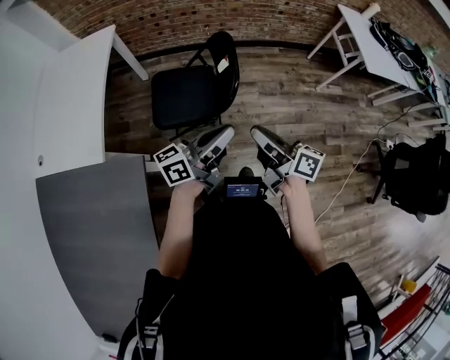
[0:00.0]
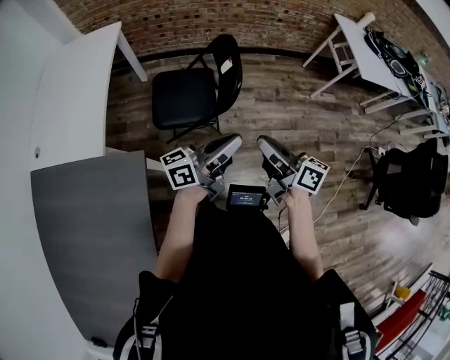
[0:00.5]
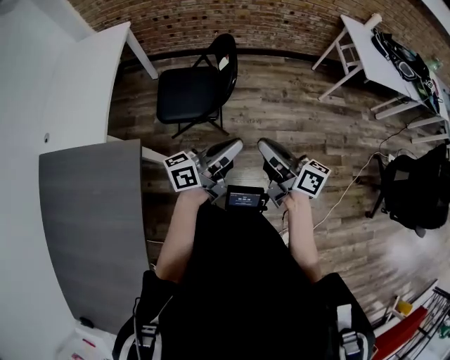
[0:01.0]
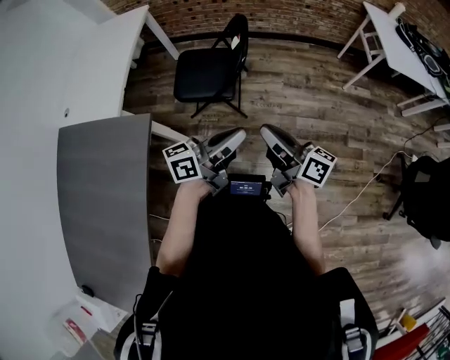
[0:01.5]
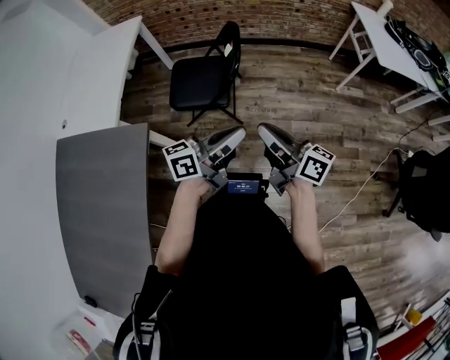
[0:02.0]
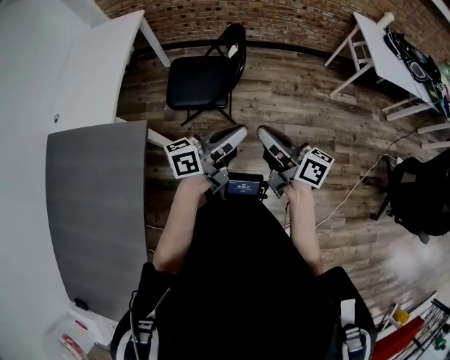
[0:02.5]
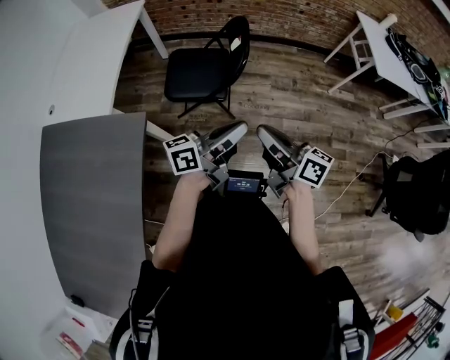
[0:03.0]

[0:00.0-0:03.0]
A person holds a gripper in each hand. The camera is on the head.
0:00.0 to 0:01.5: The two grippers go some 15 cm backward and to the right.
0:01.5 to 0:03.0: The grippers move only a little.

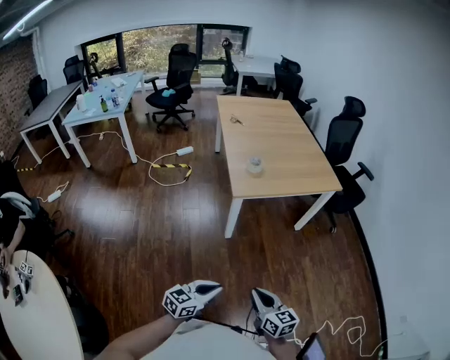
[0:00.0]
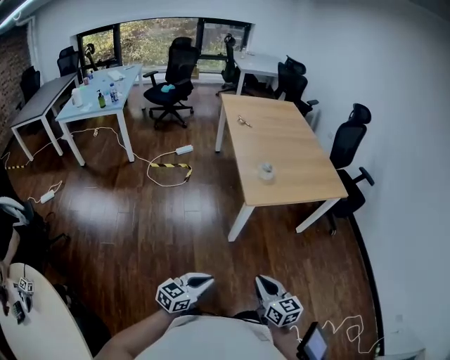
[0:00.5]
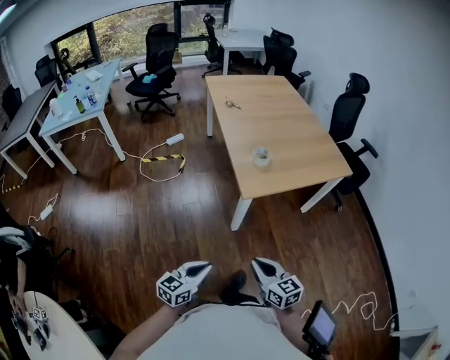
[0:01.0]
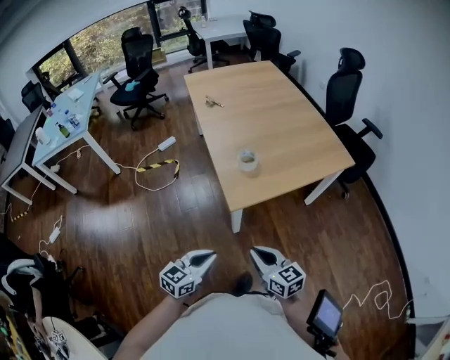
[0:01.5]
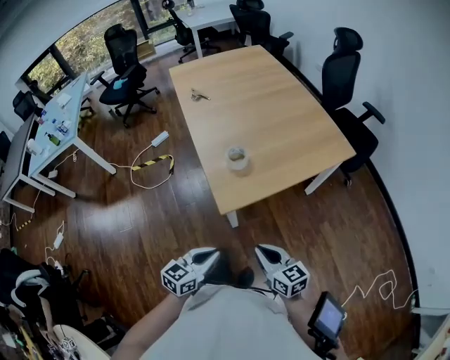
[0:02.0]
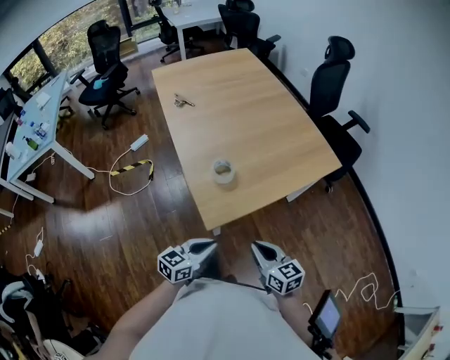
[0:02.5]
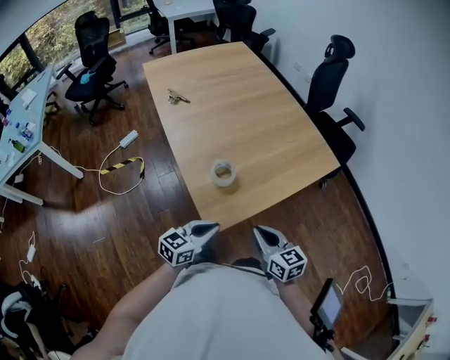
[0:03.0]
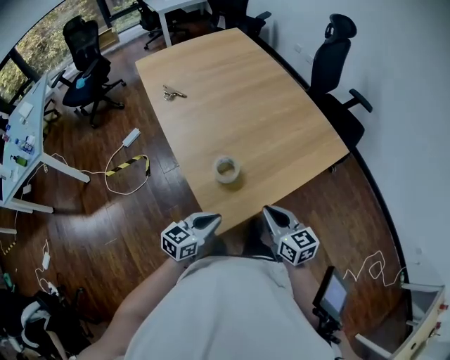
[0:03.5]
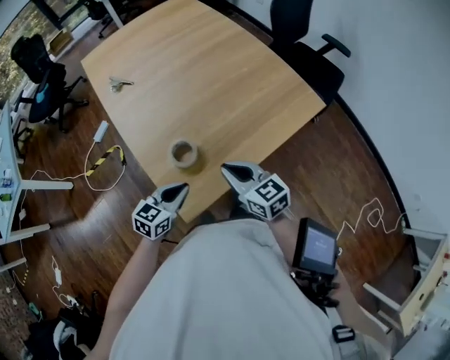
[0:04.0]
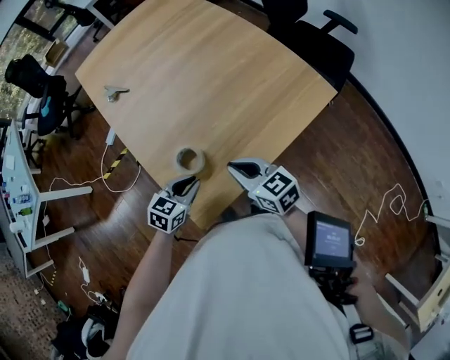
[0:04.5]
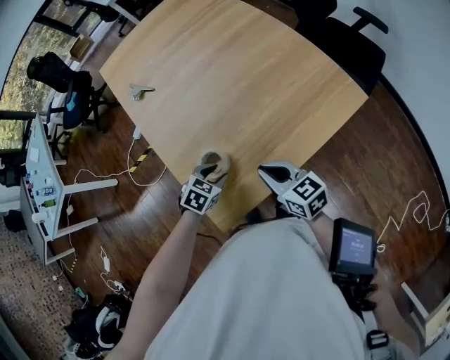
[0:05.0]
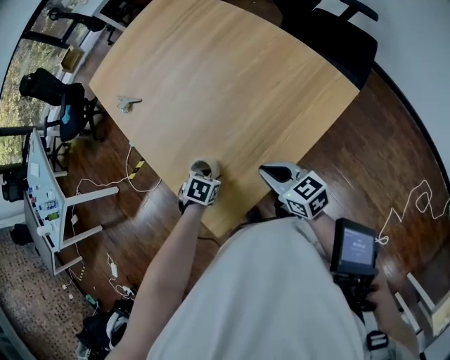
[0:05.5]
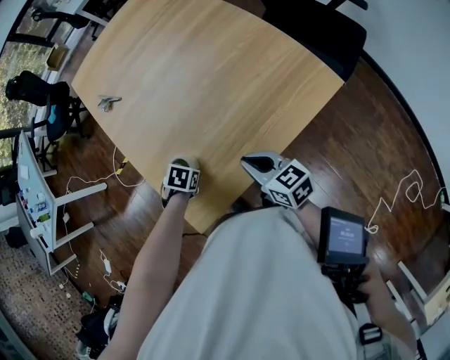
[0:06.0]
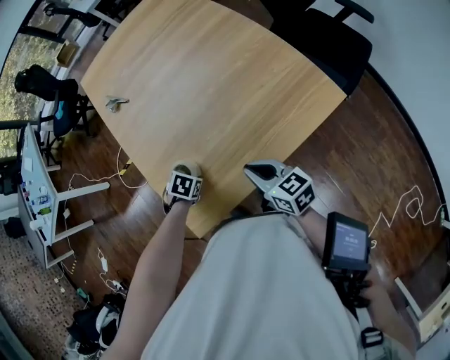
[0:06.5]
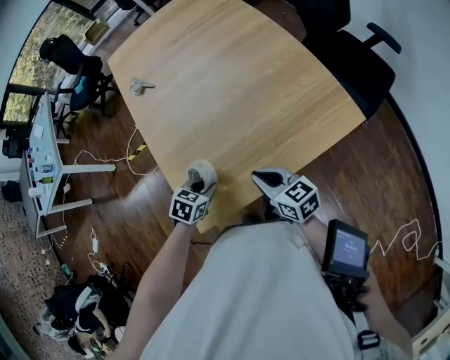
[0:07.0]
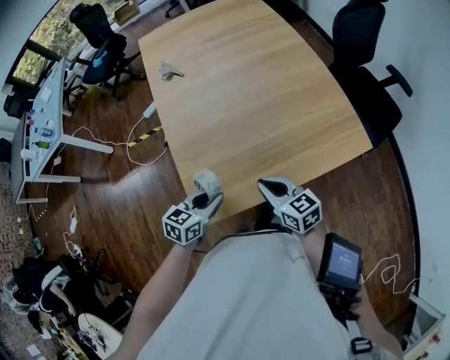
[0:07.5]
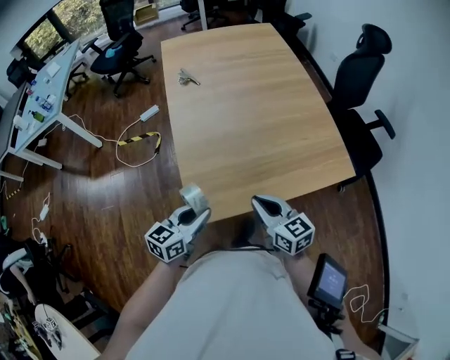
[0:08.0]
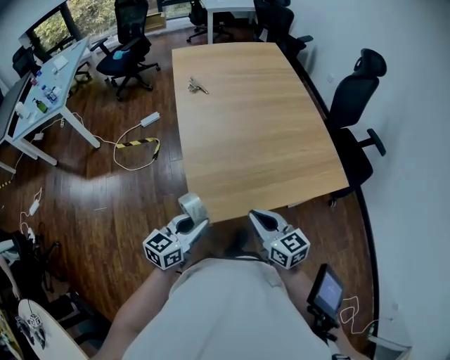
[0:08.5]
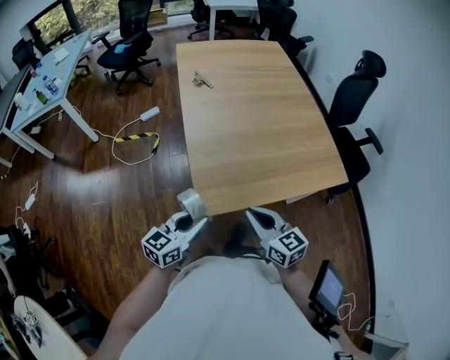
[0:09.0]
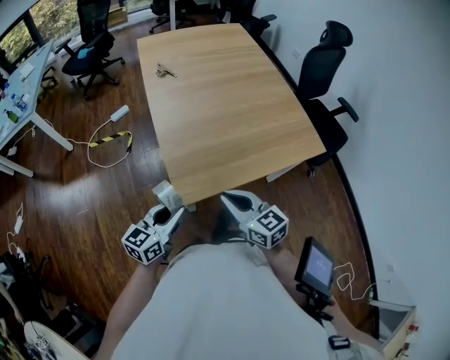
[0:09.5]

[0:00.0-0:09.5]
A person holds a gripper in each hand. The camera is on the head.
0:00.0 to 0:02.0: The two grippers go about 35 cm forward.
0:02.0 to 0:04.0: The two grippers go about 30 cm forward.
0:04.0 to 0:05.5: The right gripper changes place by some 15 cm. Meanwhile the left gripper is displaced downward by some 10 cm, points its fingers some 50 degrees further downward, and opens.
0:05.5 to 0:07.5: The left gripper goes approximately 10 cm upward, tilts its fingers approximately 40 degrees upward, and closes.
0:07.5 to 0:09.5: Both grippers travel together backward, to the left and upward, about 20 cm. The left gripper swivels about 20 degrees.

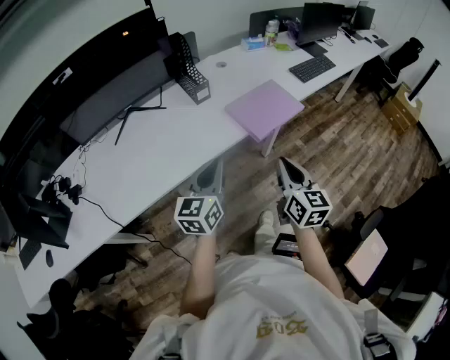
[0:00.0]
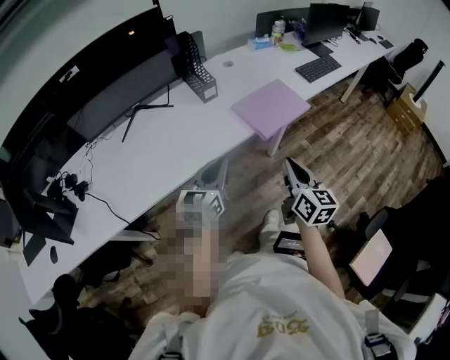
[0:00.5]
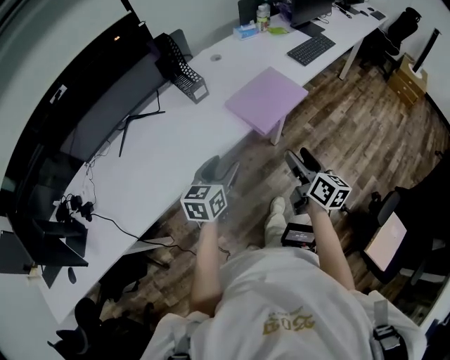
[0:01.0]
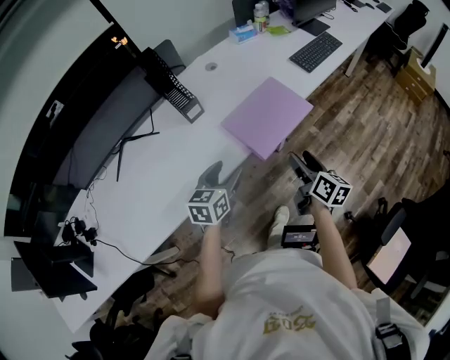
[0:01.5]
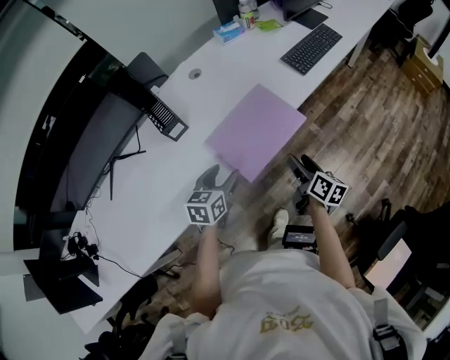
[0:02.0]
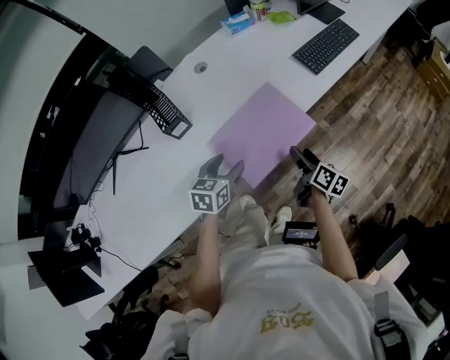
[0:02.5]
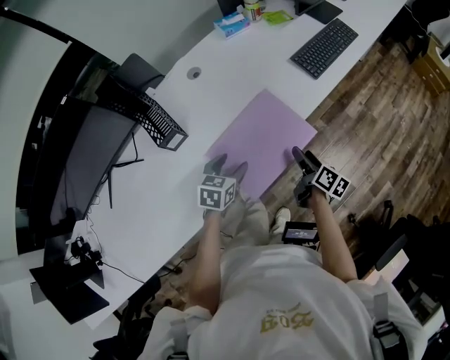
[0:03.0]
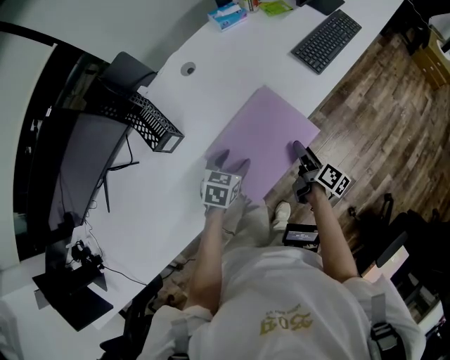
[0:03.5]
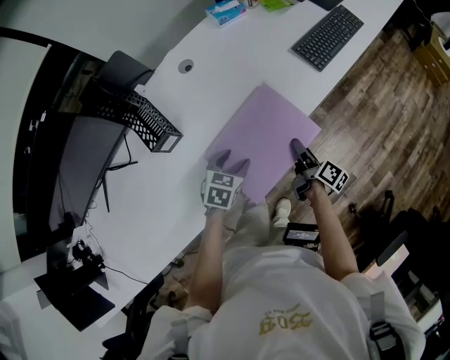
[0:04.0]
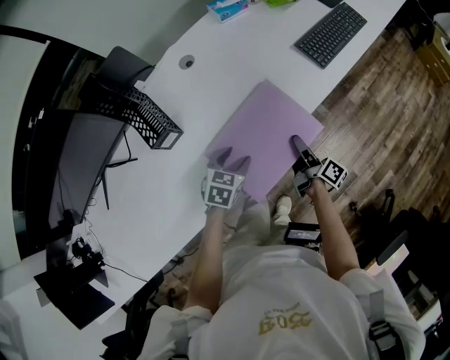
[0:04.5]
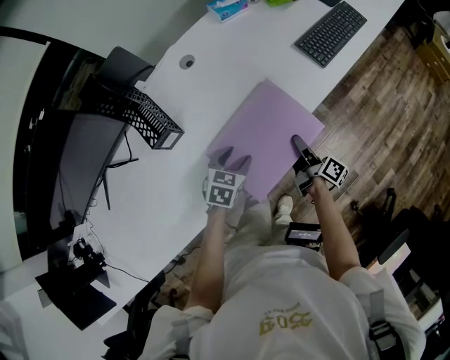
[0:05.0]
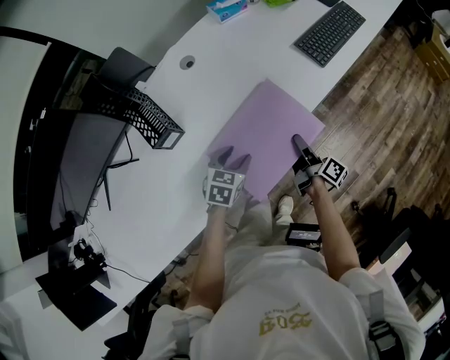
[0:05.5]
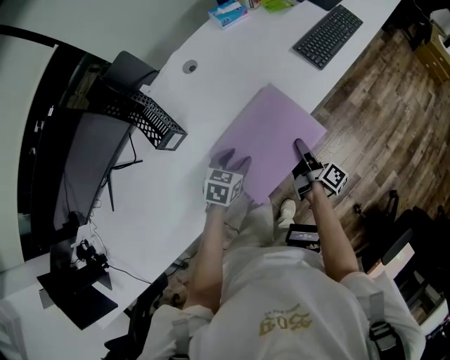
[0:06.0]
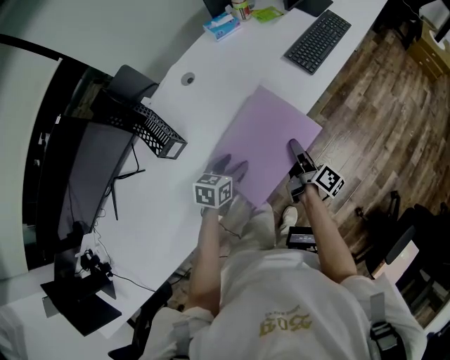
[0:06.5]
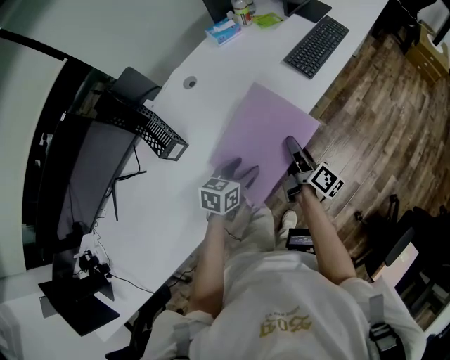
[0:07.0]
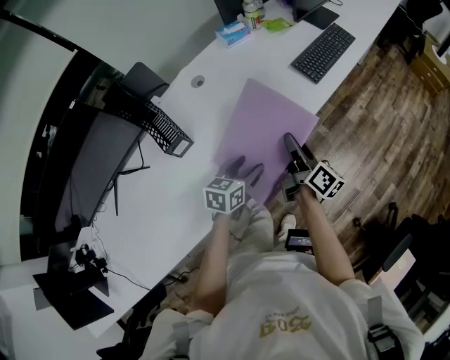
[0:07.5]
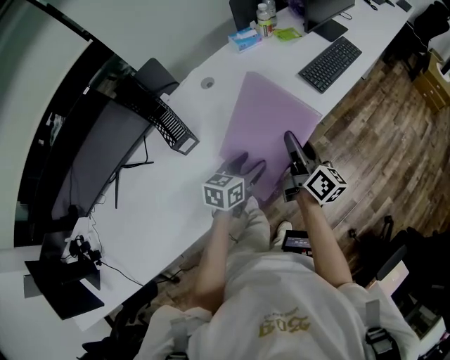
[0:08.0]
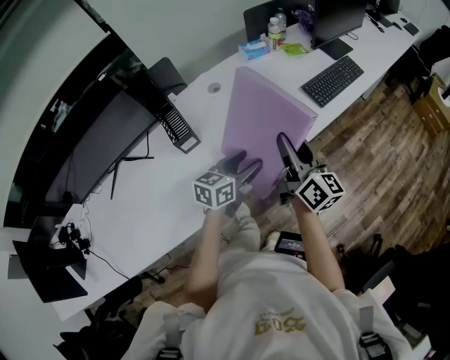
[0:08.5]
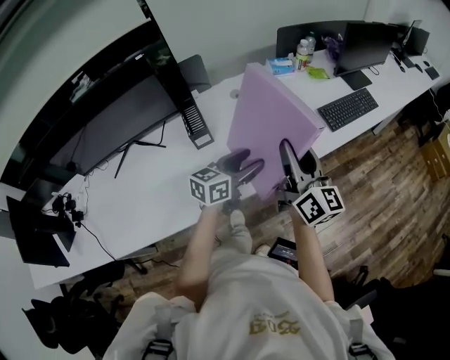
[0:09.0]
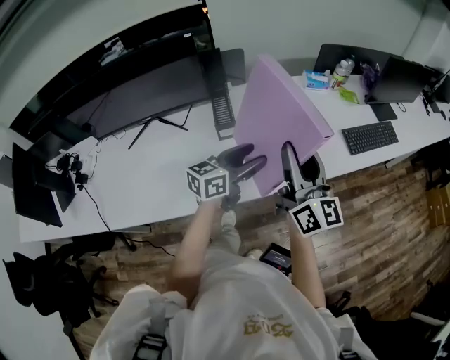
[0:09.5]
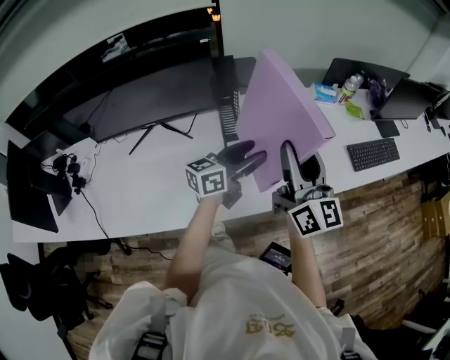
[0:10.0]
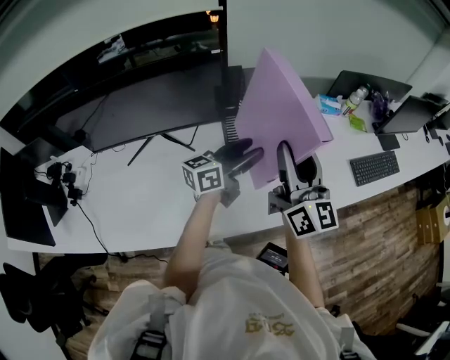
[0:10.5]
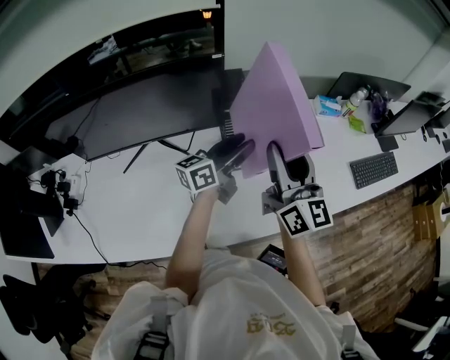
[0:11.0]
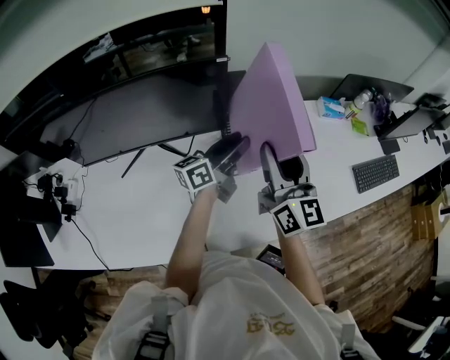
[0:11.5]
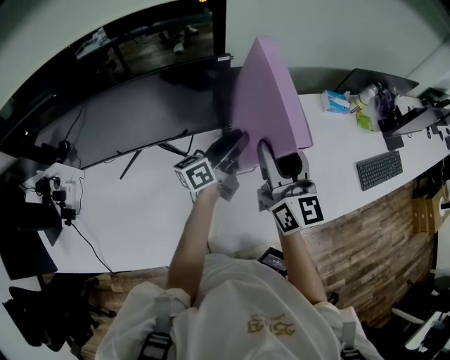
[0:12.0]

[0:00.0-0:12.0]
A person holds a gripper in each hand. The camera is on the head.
0:00.0 to 0:02.0: The right gripper travels forward, downward and to the right by roughly 35 cm, turns by roughly 40 degrees, and opens up, while the left gripper goes approximately 30 cm forward and downward, rotates about 30 degrees, and opens up.
0:02.0 to 0:04.0: The grippers both shift forward and downward by approximately 15 cm. The left gripper turns by about 20 degrees; the right gripper swivels roughly 20 degrees.
0:04.0 to 0:06.0: The grippers stay close to where they were, moving slightly.
0:06.0 to 0:08.0: The left gripper shifts about 10 cm upward, and turns by approximately 20 degrees. The right gripper heads upward, covering some 20 cm, and changes its angle by roughly 30 degrees.
0:08.0 to 0:10.0: Both grippers travel together upward and to the left, about 25 cm. The right gripper rotates roughly 40 degrees; the left gripper points its fingers some 30 degrees further upward.
0:10.0 to 0:12.0: The right gripper heads to the left and forward, covering approximately 20 cm, while the left gripper goes some 20 cm forward and to the left, and turns by some 20 degrees.

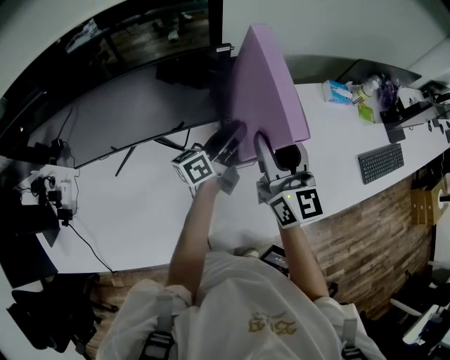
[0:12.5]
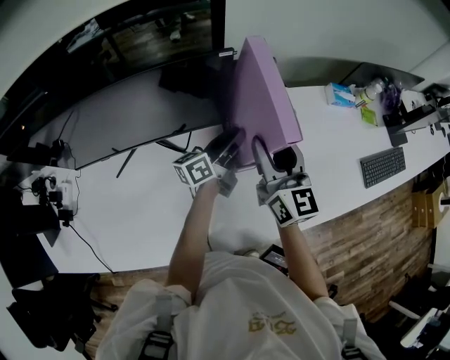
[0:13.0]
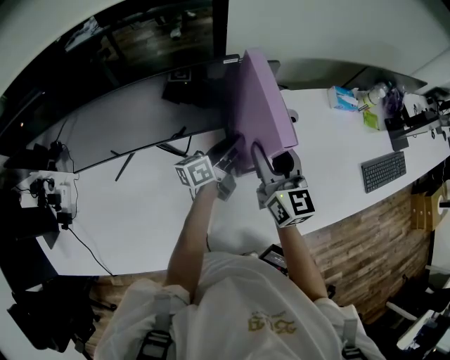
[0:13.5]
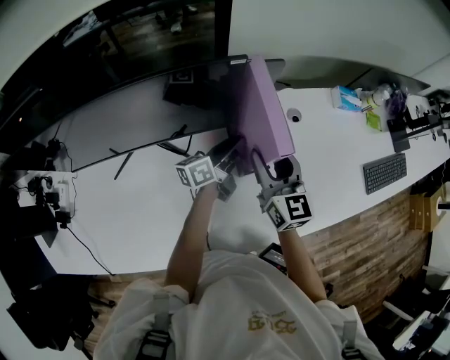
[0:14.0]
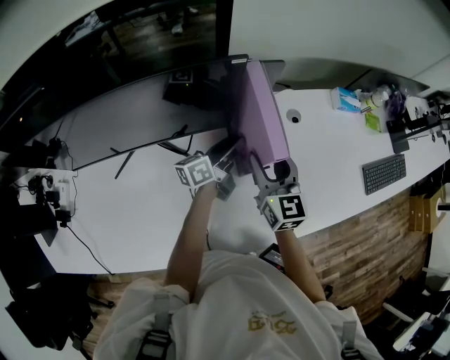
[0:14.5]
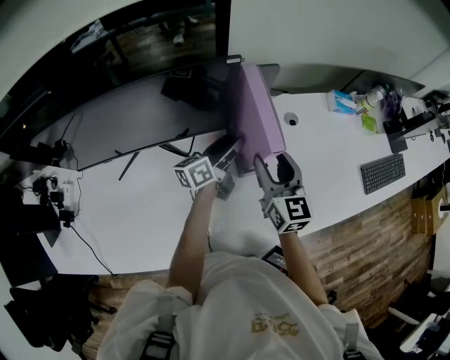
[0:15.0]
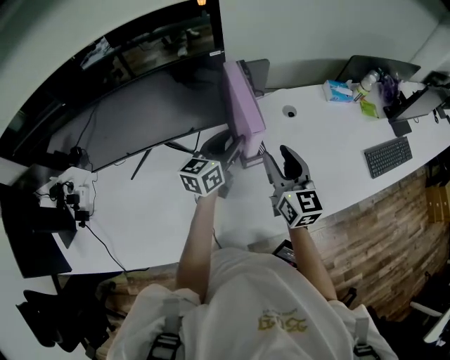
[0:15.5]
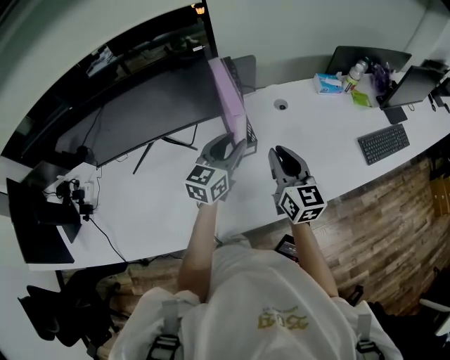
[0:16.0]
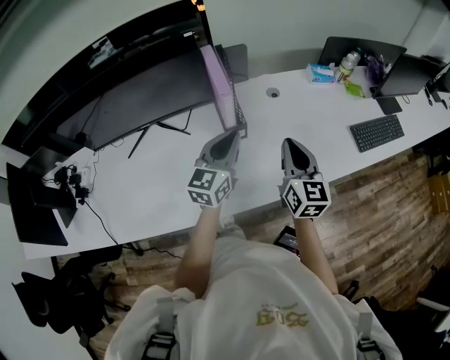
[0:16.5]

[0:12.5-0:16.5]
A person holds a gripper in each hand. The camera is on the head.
0:12.5 to 0:14.5: Both grippers travel together downward, roughly 10 cm.
0:14.5 to 0:16.5: The left gripper shifts some 25 cm backward, upward and to the right, rolls clockwise, seen from behind, by some 50 degrees, and closes up, while the right gripper moves to the right and backward, approximately 25 cm, and closes its fingers.
